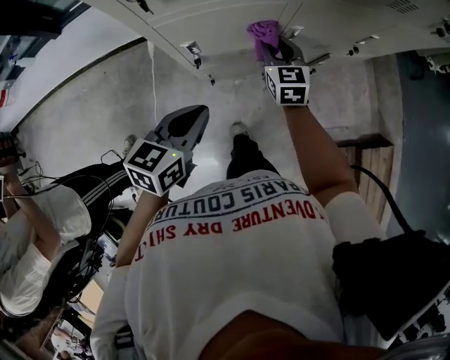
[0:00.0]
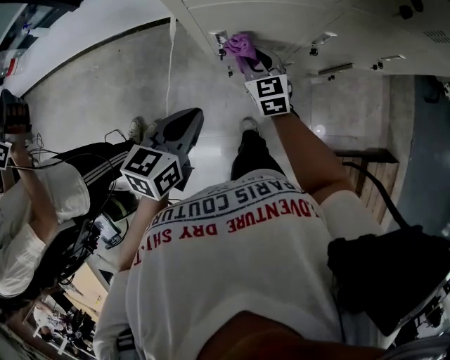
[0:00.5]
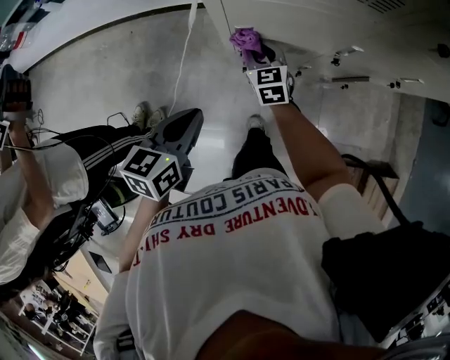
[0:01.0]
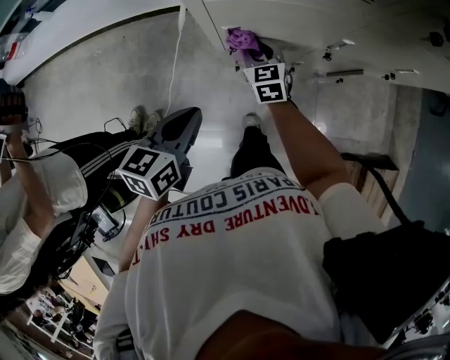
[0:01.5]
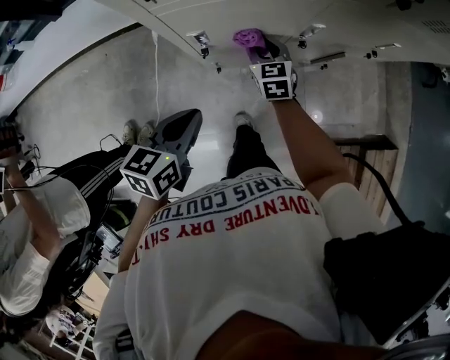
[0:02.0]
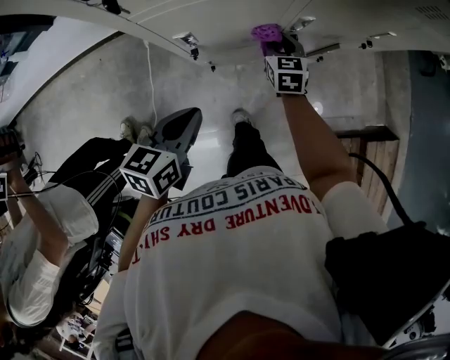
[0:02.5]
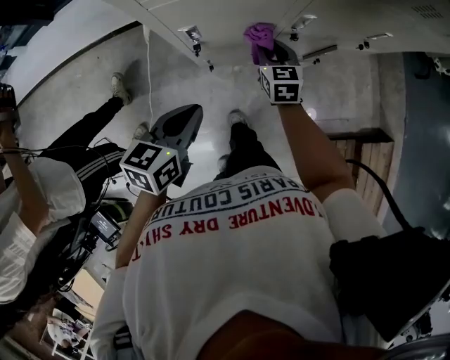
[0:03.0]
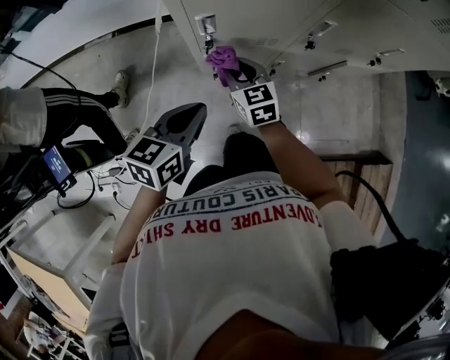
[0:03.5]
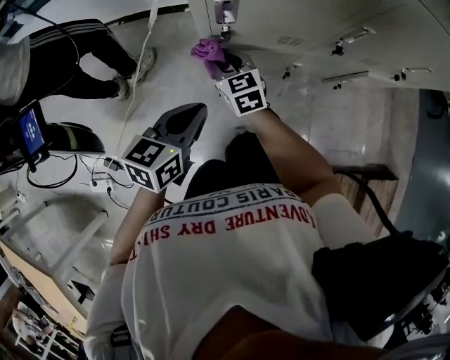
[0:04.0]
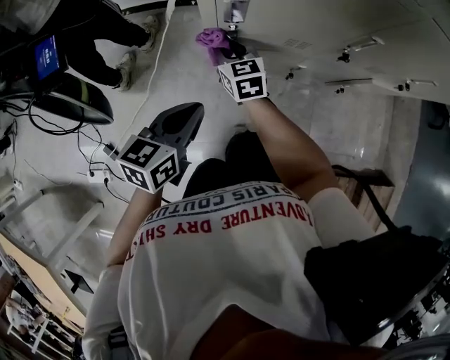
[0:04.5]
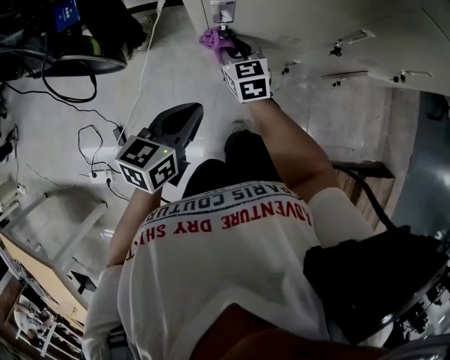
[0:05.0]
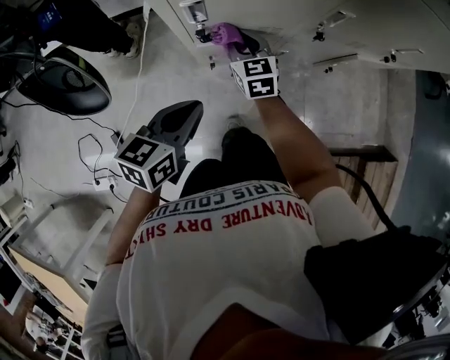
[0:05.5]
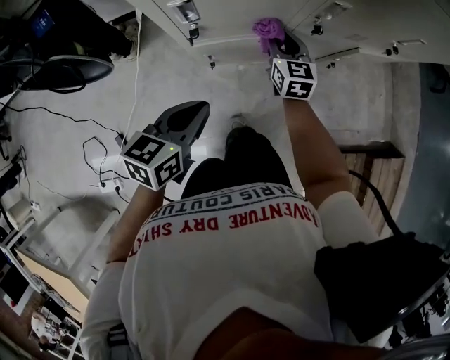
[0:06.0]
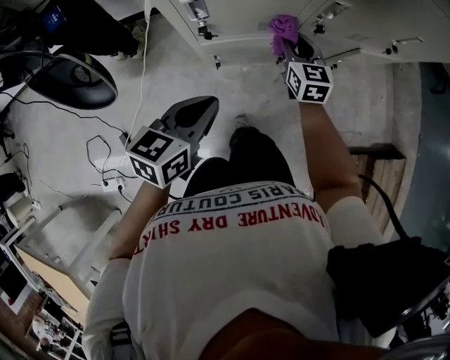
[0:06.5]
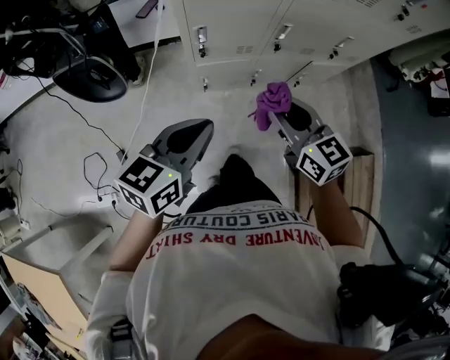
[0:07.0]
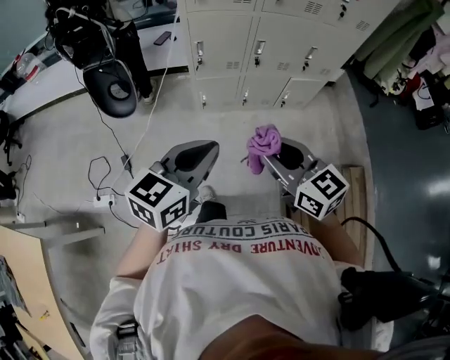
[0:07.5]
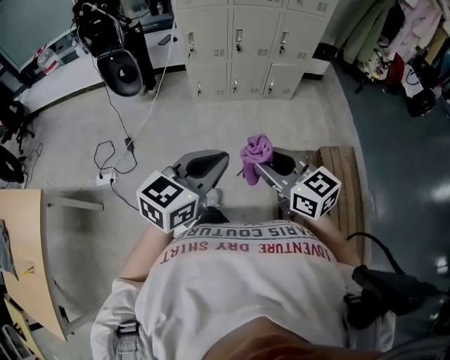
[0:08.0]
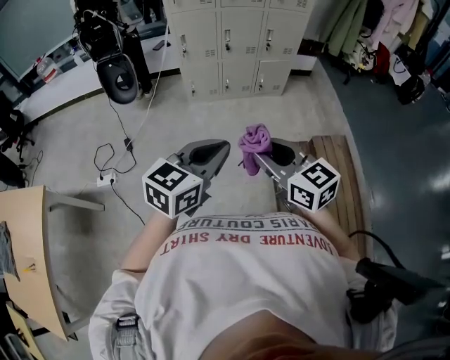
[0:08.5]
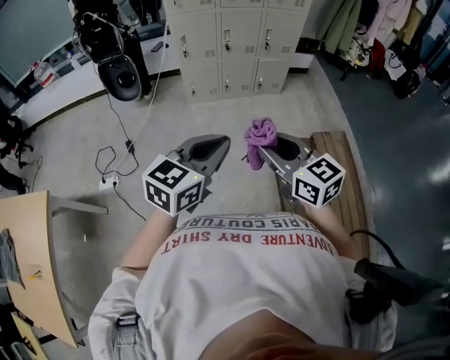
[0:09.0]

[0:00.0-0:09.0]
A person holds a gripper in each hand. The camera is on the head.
0:00.0 to 0:02.0: The right gripper is displaced downward by some 10 cm, and reaches approximately 20 cm to the left, then returns.
0:02.0 to 0:04.5: The left gripper moves downward, roughly 15 cm, while the right gripper moves to the left and downward, some 20 cm.
0:04.5 to 0:07.0: The right gripper travels upward, backward and to the right by roughly 50 cm. The left gripper goes some 30 cm upward and backward.
0:07.0 to 0:09.0: The two grippers travel together, backward, approximately 70 cm.

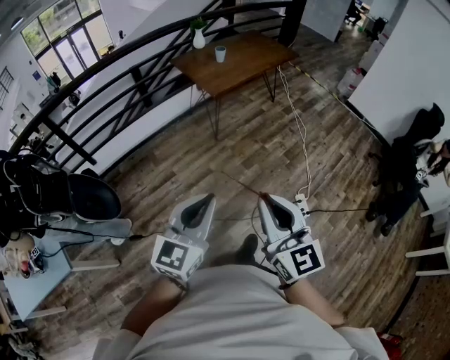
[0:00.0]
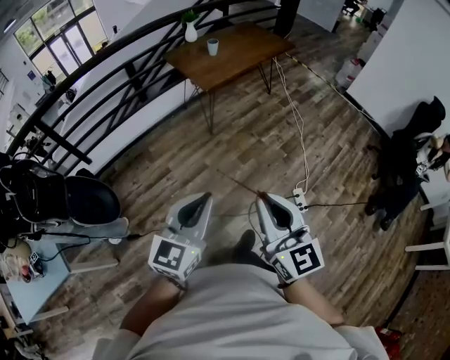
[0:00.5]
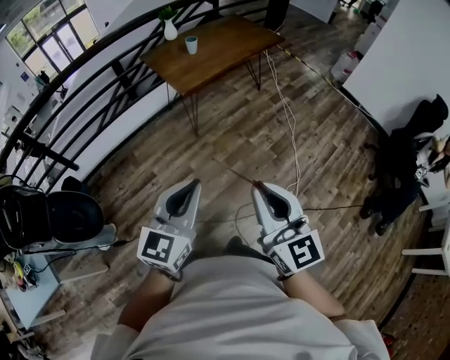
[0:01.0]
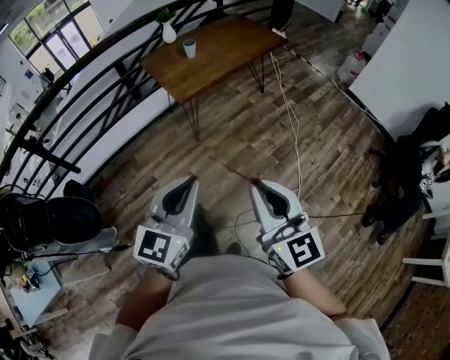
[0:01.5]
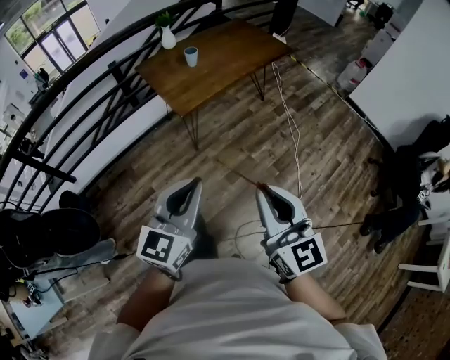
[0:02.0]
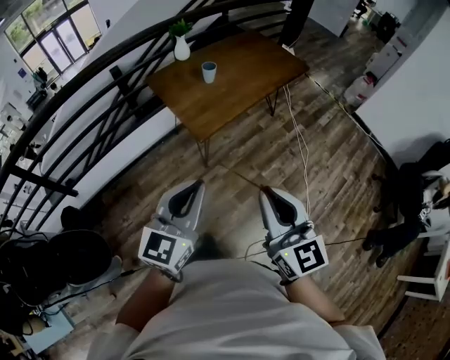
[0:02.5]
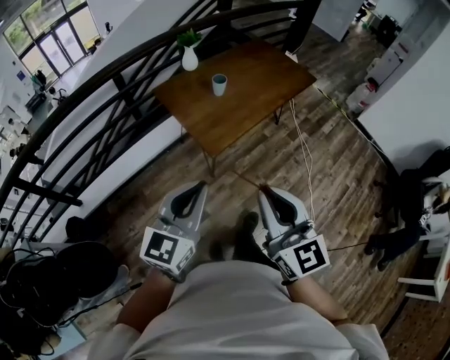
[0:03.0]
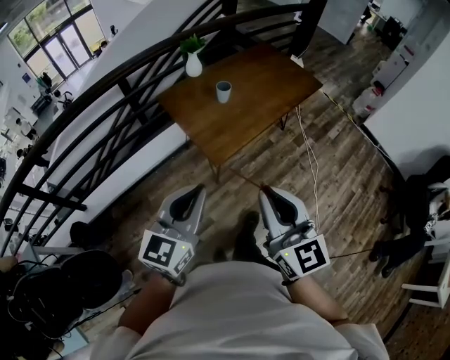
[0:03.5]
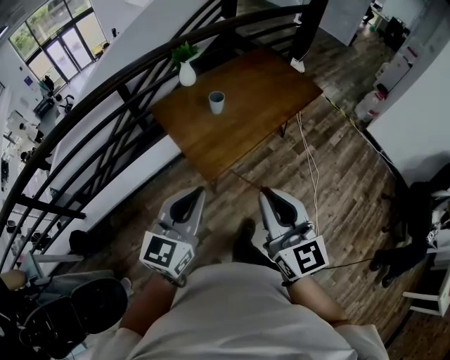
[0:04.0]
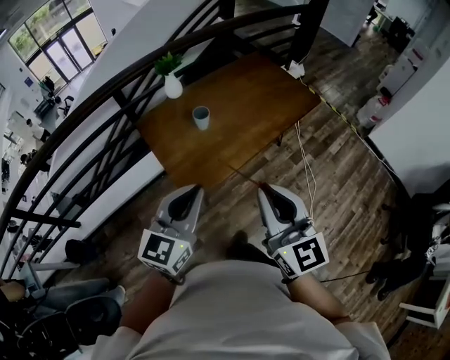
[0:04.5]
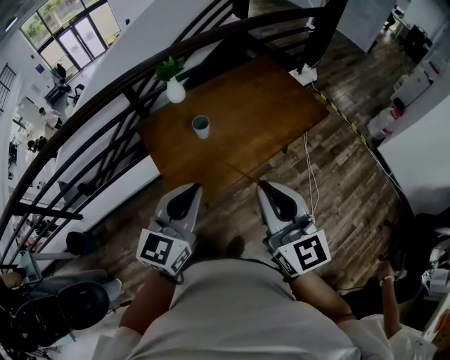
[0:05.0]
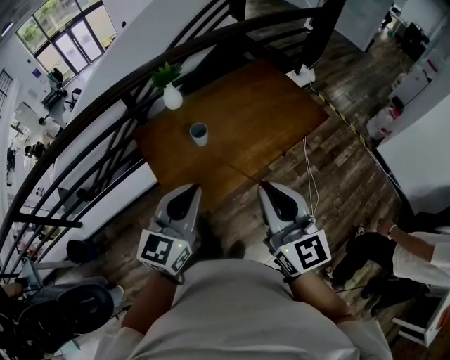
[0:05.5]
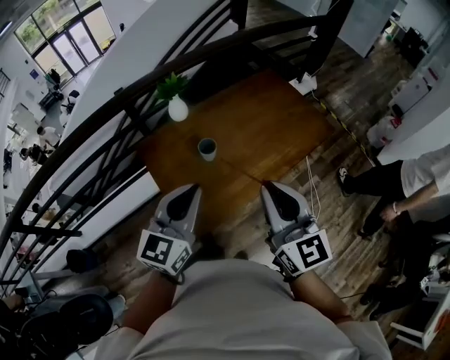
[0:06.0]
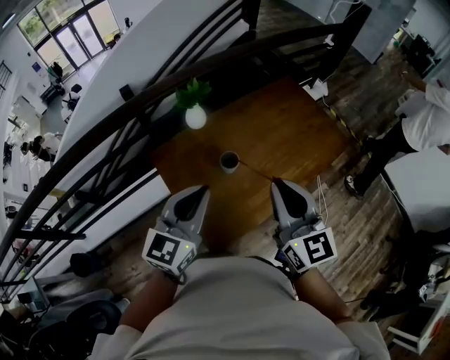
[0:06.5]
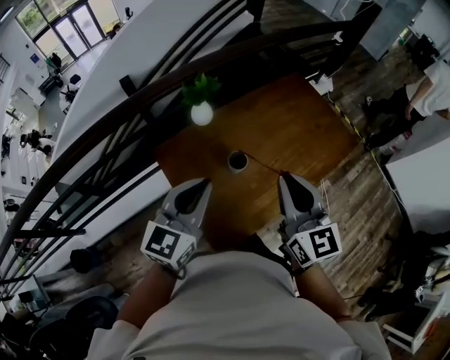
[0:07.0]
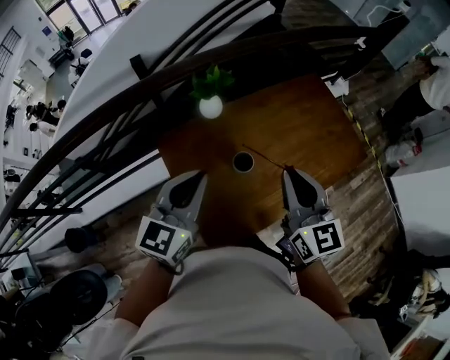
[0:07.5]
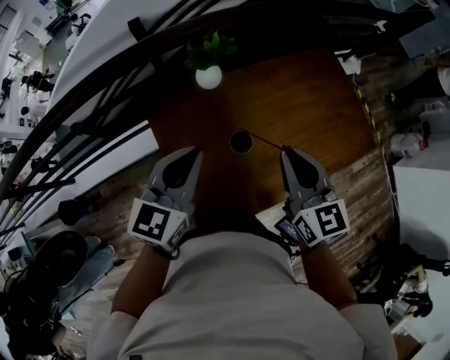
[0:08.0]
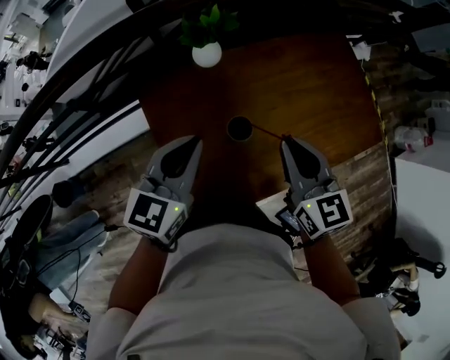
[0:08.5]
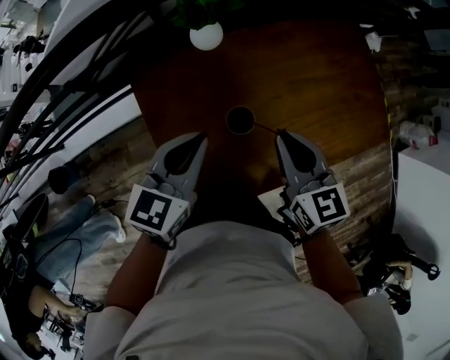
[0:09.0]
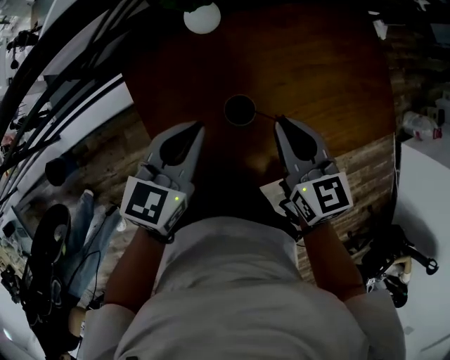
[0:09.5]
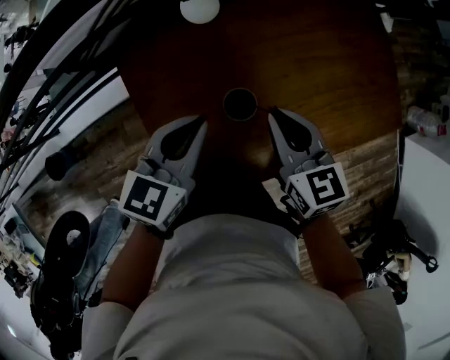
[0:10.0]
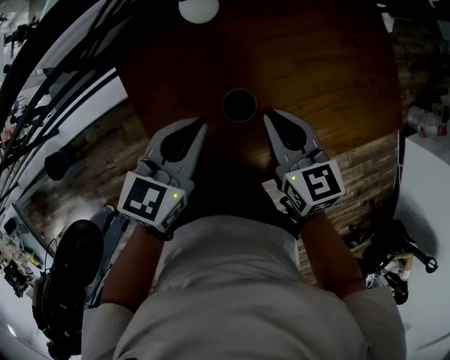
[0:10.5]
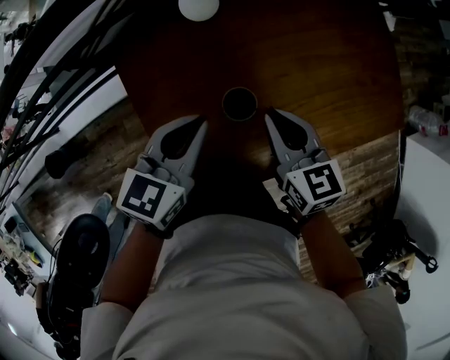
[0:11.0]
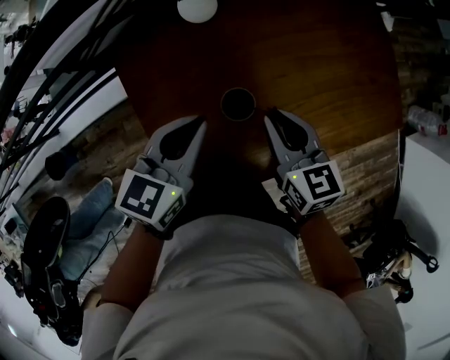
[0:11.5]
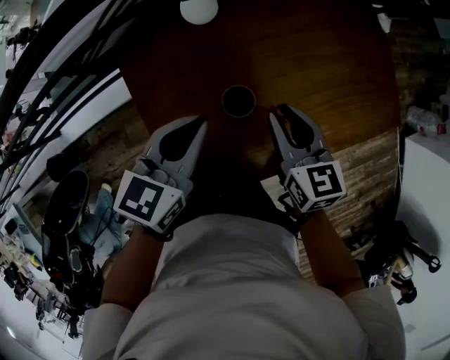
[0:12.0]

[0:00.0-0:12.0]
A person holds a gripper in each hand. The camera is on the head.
0:00.0 to 0:02.0: Both grippers are carried forward and to the right, some 40 cm.
0:02.0 to 0:04.0: Both grippers travel together forward and to the left, approximately 40 cm.
0:04.0 to 0:06.0: Both grippers travel together forward, roughly 35 cm.
0:06.0 to 0:08.0: The left gripper is displaced forward and to the left by approximately 30 cm, while the right gripper is displaced forward by approximately 30 cm.
0:08.0 to 0:10.0: The two grippers go roughly 20 cm downward.
0:10.0 to 0:12.0: There are only small adjustments of the grippers.

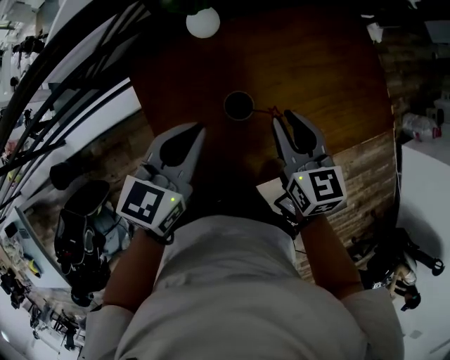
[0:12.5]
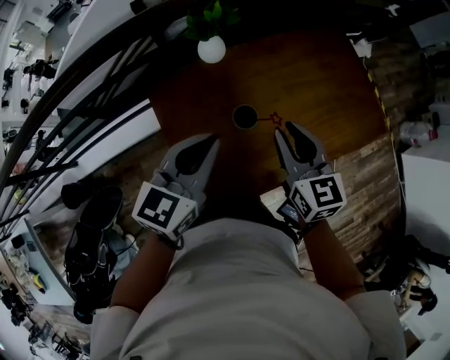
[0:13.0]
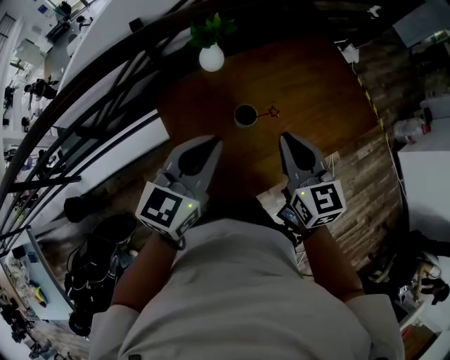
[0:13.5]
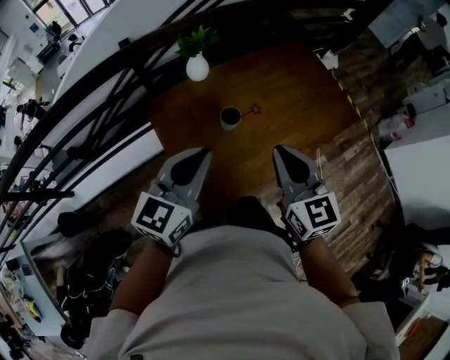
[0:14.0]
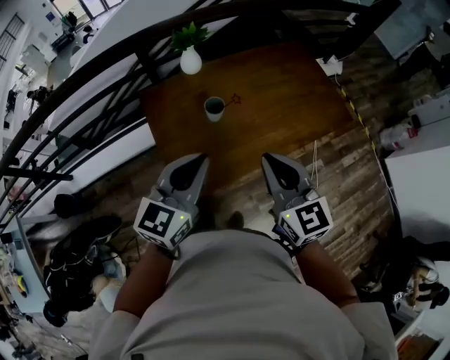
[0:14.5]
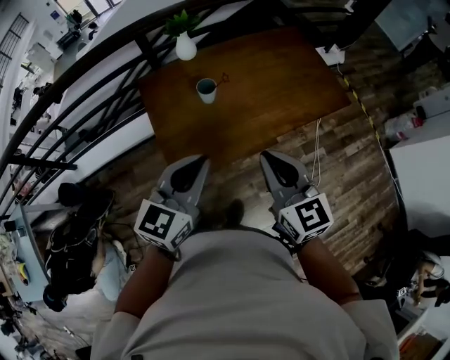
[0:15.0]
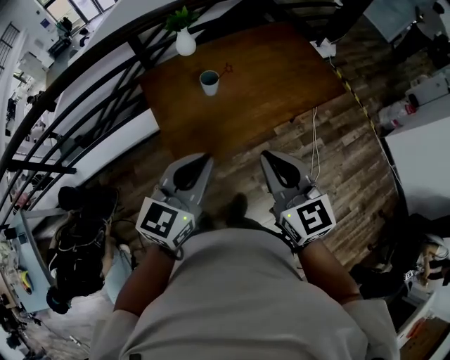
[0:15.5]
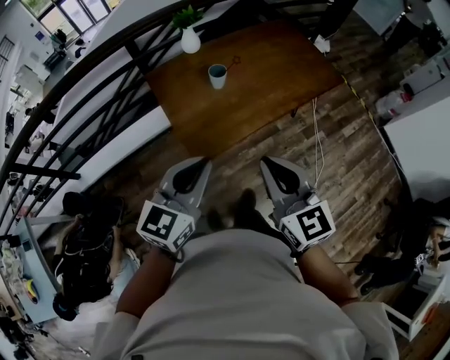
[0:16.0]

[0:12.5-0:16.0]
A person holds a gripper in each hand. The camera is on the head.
0:12.5 to 0:14.5: The grippers both shift backward and upward by about 35 cm. The right gripper closes up.
0:14.5 to 0:16.0: Both grippers travel together backward, roughly 25 cm.

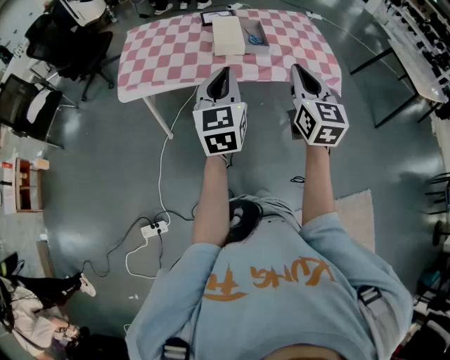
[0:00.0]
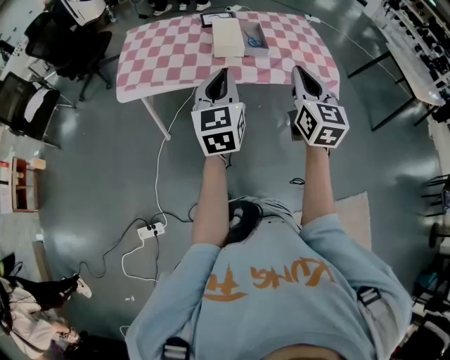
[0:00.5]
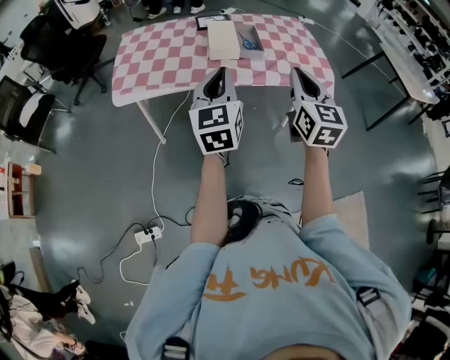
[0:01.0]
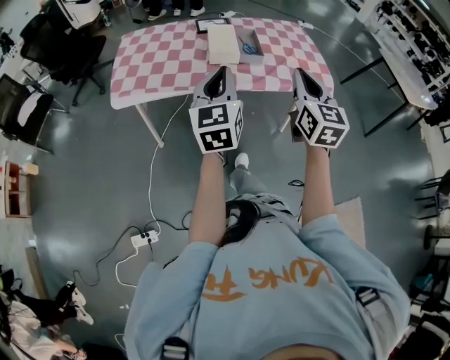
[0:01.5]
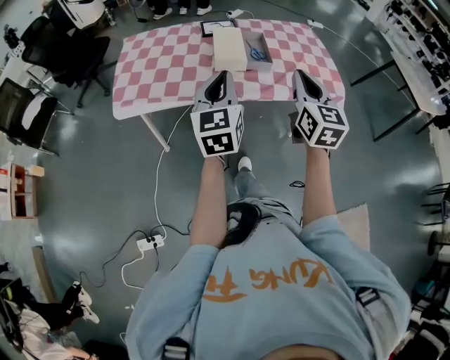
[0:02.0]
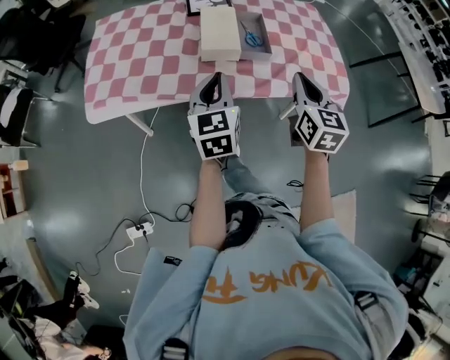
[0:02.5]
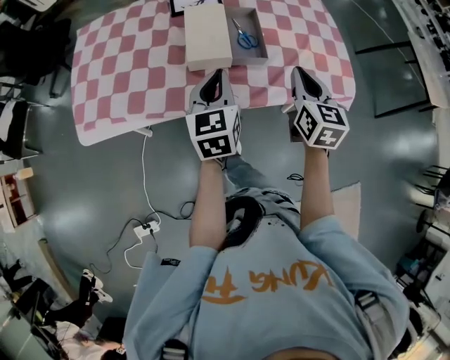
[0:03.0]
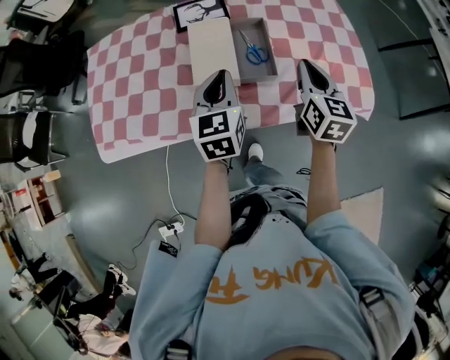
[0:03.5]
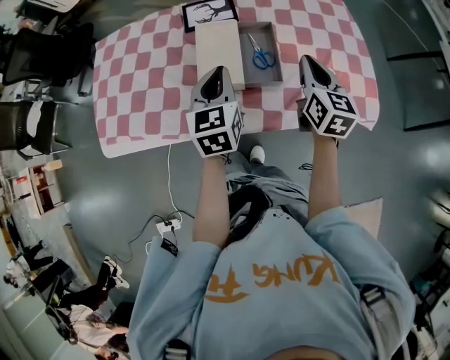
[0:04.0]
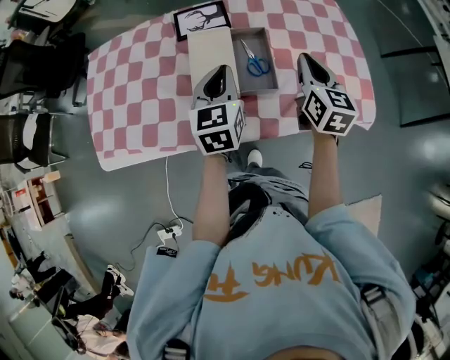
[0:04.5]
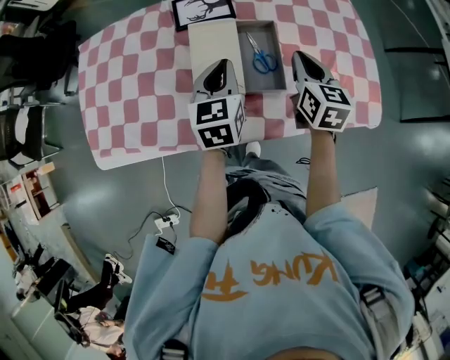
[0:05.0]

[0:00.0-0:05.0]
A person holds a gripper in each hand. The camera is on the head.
0:00.0 to 0:02.5: Both grippers move forward and downward, about 25 cm.
0:02.5 to 0:05.0: Both grippers travel together forward, roughly 30 cm.
